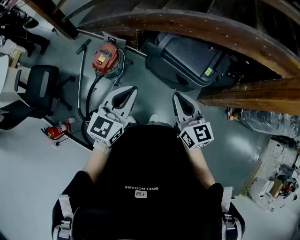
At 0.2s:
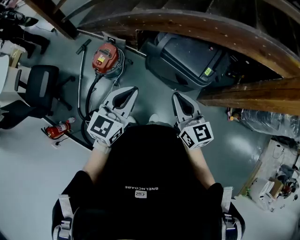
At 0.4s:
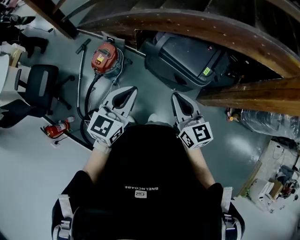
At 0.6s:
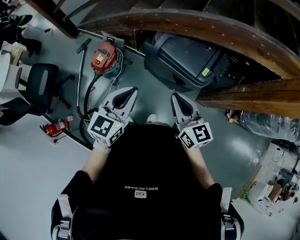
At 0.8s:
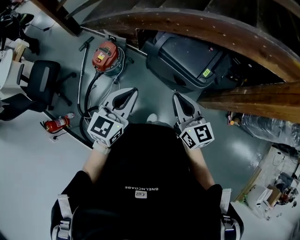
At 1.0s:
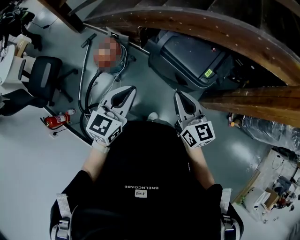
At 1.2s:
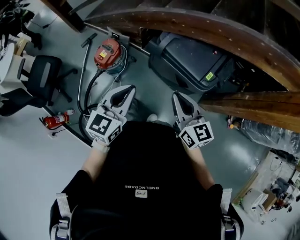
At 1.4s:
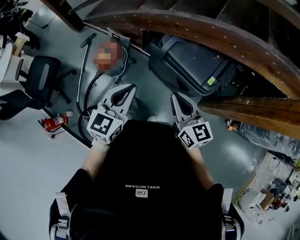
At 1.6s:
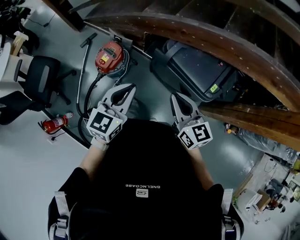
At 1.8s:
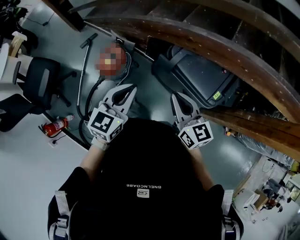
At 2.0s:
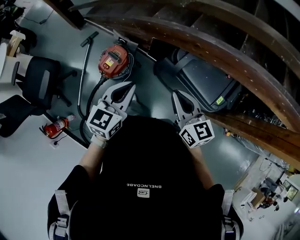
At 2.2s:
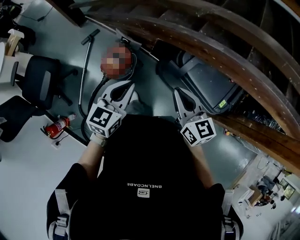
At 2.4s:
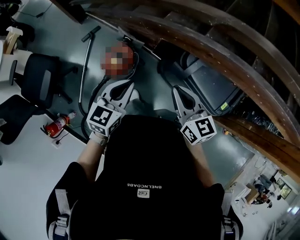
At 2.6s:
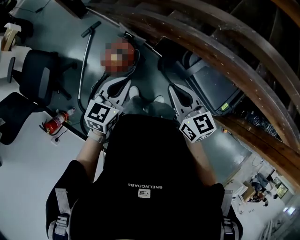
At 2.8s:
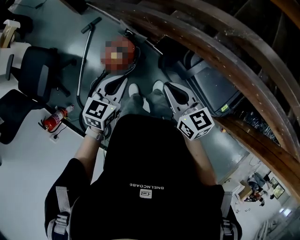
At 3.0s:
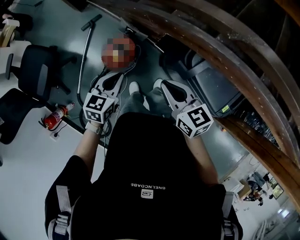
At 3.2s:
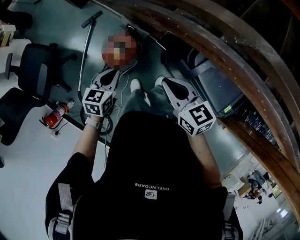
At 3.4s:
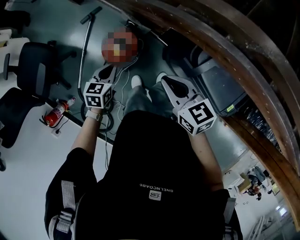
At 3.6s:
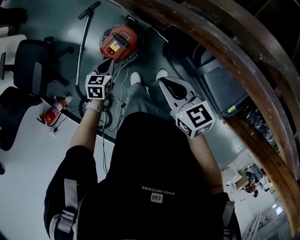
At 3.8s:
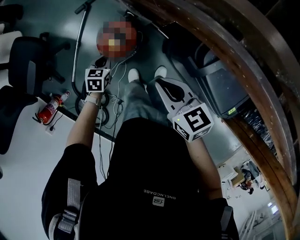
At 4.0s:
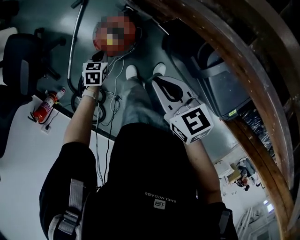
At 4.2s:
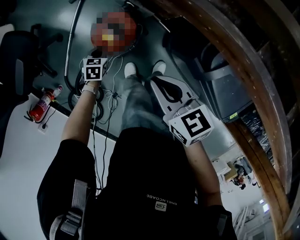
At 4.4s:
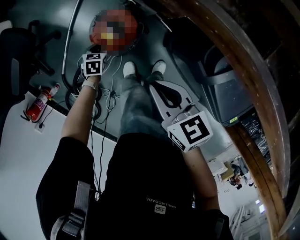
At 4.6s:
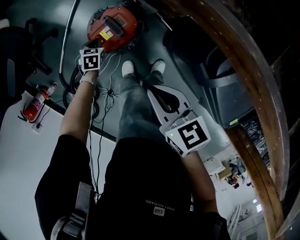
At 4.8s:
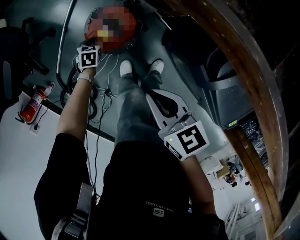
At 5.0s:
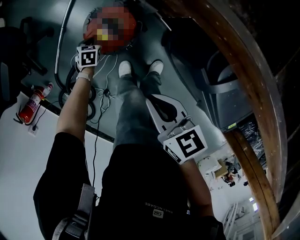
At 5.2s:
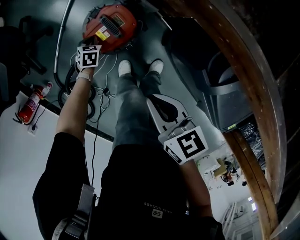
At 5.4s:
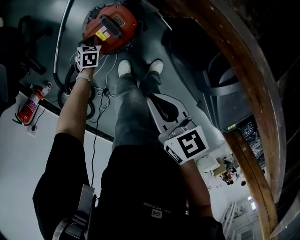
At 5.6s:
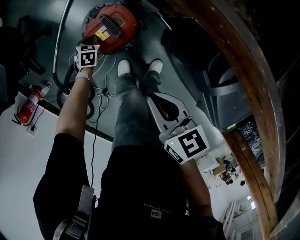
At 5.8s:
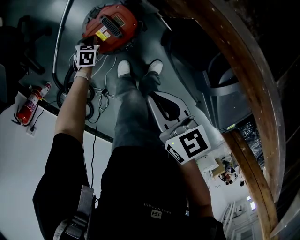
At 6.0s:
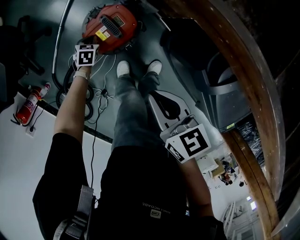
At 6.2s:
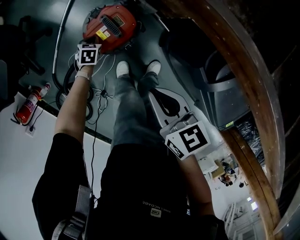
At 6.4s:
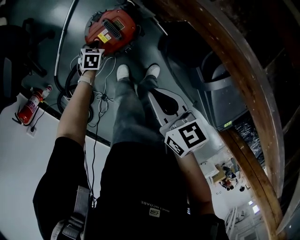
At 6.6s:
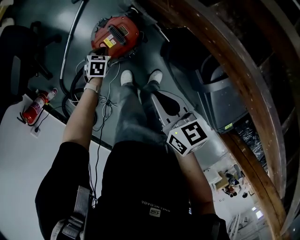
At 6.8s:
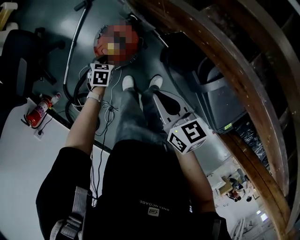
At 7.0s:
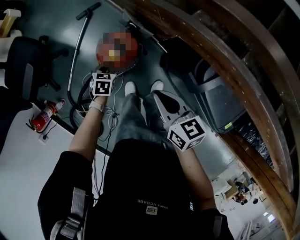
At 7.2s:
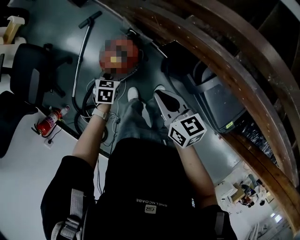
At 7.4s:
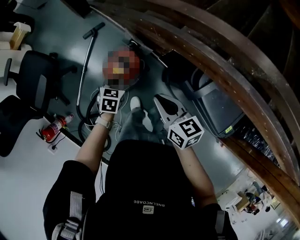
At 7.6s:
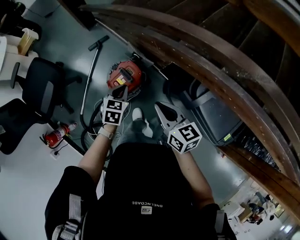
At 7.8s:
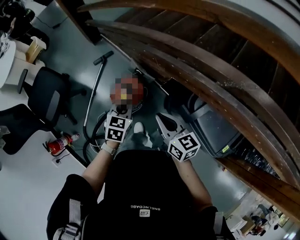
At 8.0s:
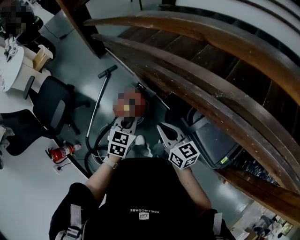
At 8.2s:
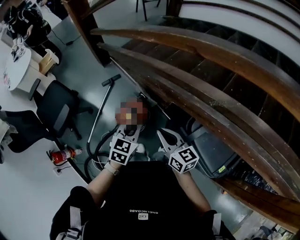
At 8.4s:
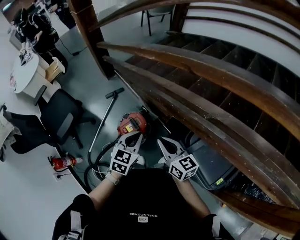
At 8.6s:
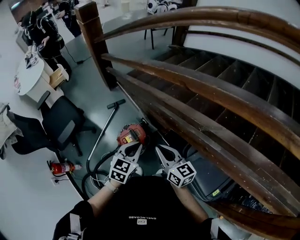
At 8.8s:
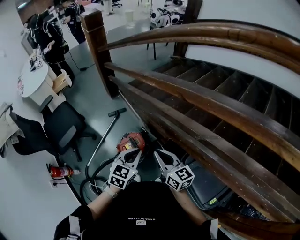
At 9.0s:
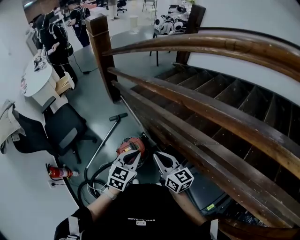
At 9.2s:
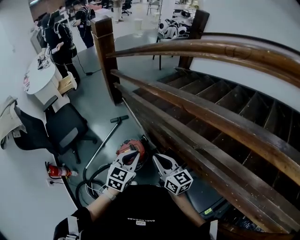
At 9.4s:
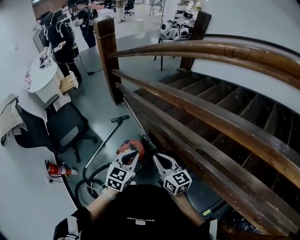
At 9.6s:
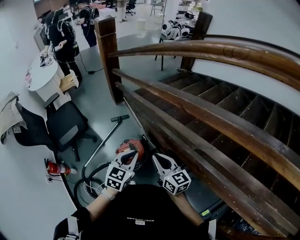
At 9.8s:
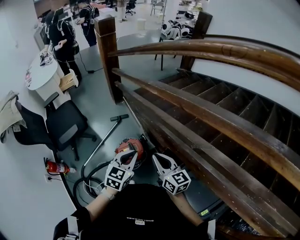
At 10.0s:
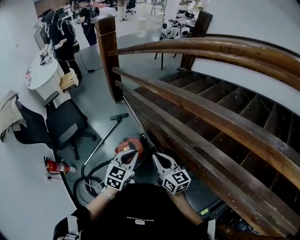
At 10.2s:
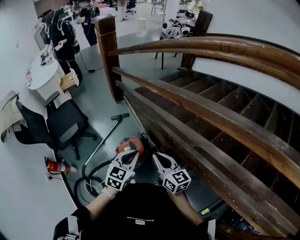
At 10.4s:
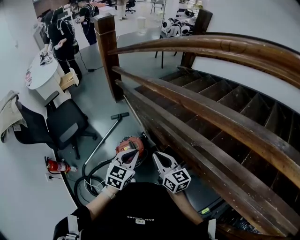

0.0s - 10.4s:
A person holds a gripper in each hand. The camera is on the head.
0.0s - 1.4s: The right gripper is displaced forward by approximately 5 cm. The left gripper shifts by roughly 5 cm.
1.4s - 3.0s: The left gripper moves forward, to the left and downward, about 40 cm, and changes its angle by about 20 degrees. The right gripper goes approximately 35 cm forward and to the left, and changes its angle by roughly 20 degrees.
3.0s - 4.4s: The right gripper goes roughly 20 cm downward; the left gripper goes approximately 40 cm downward, and angles its fingers downward, by some 30 degrees.
4.4s - 6.0s: The left gripper is displaced downward by roughly 10 cm. The right gripper travels downward by some 5 cm.
6.0s - 7.4s: The right gripper moves upward, some 15 cm. The left gripper heads upward, covering some 35 cm.
7.4s - 9.0s: The left gripper travels upward by some 35 cm, and turns by about 30 degrees. The right gripper is displaced upward by approximately 20 cm, and turns by some 30 degrees.
9.0s - 10.4s: The grippers stay close to where they were, moving slightly.

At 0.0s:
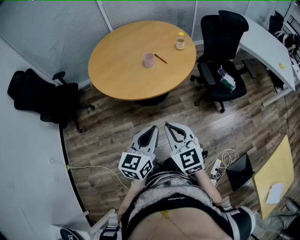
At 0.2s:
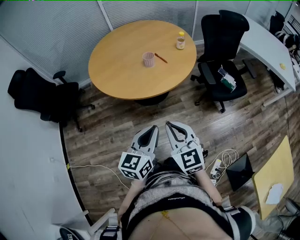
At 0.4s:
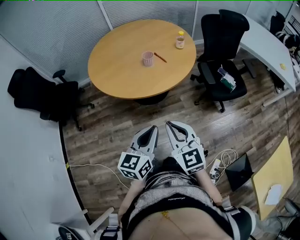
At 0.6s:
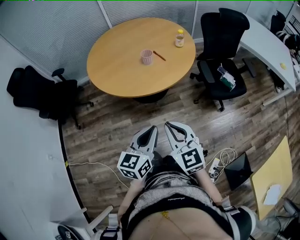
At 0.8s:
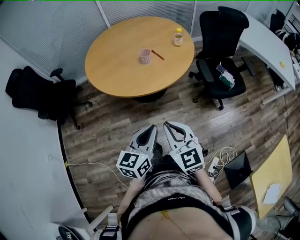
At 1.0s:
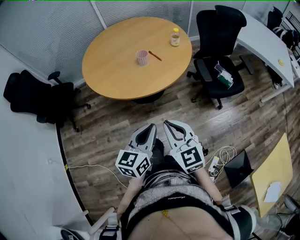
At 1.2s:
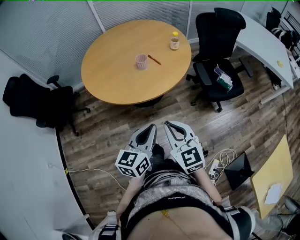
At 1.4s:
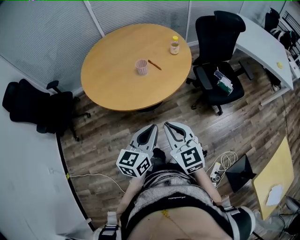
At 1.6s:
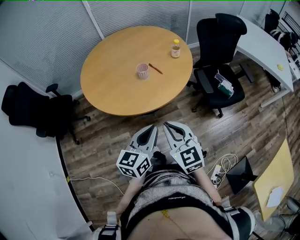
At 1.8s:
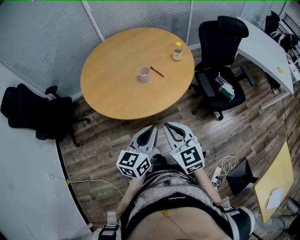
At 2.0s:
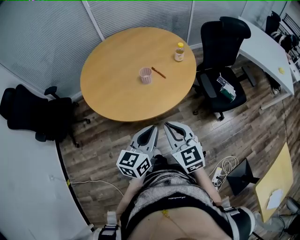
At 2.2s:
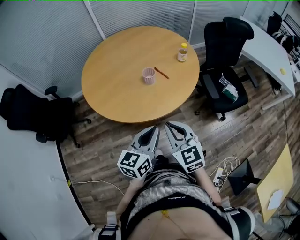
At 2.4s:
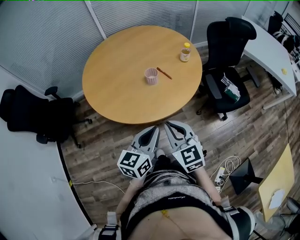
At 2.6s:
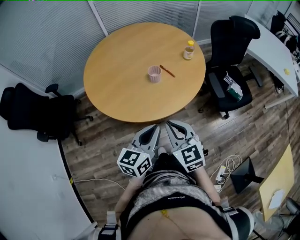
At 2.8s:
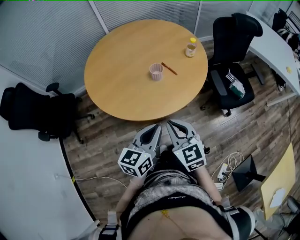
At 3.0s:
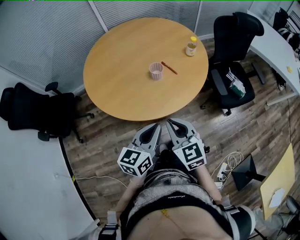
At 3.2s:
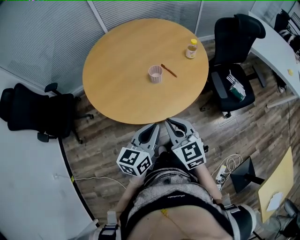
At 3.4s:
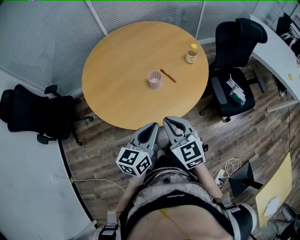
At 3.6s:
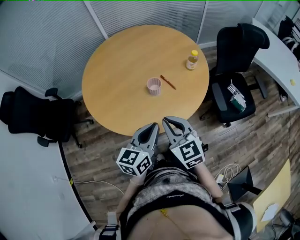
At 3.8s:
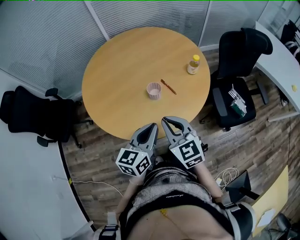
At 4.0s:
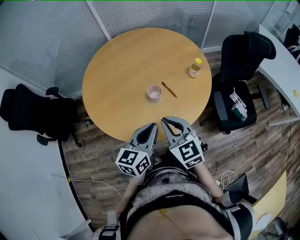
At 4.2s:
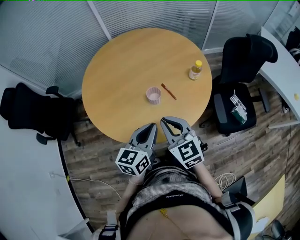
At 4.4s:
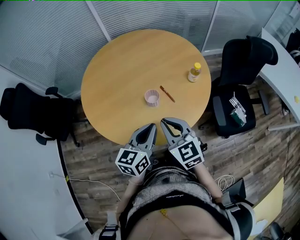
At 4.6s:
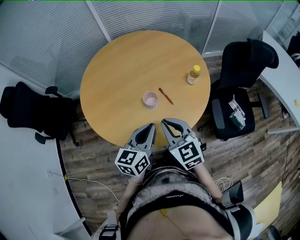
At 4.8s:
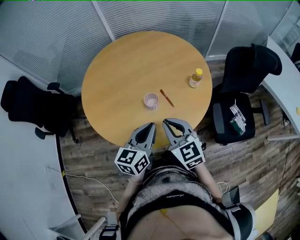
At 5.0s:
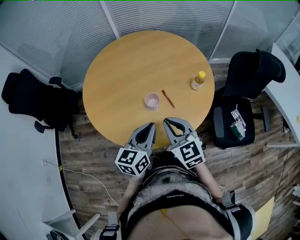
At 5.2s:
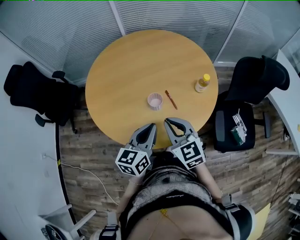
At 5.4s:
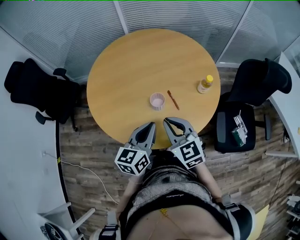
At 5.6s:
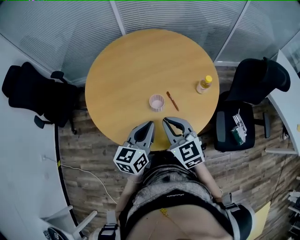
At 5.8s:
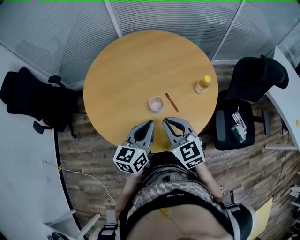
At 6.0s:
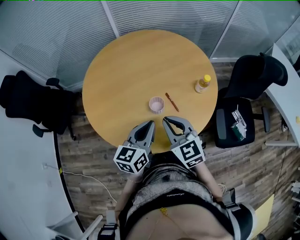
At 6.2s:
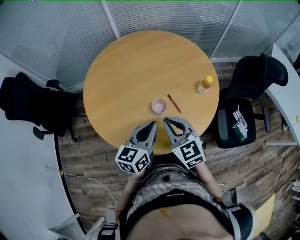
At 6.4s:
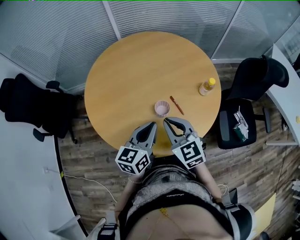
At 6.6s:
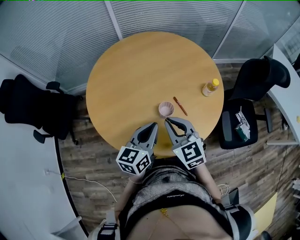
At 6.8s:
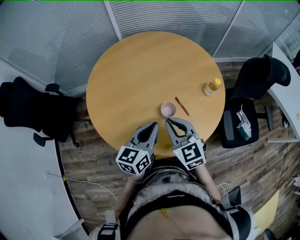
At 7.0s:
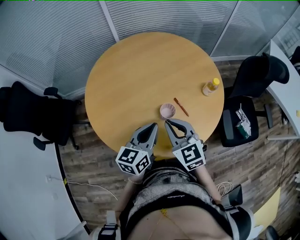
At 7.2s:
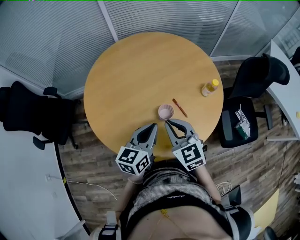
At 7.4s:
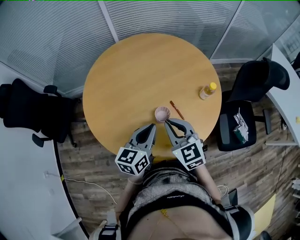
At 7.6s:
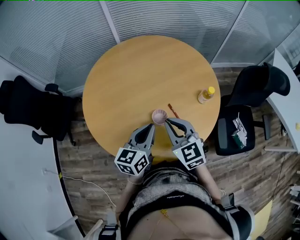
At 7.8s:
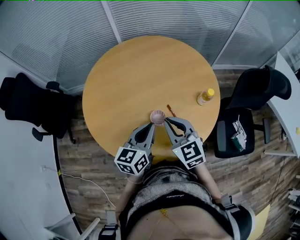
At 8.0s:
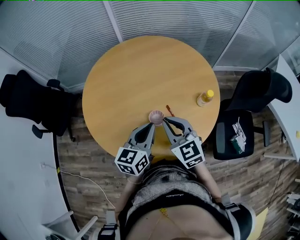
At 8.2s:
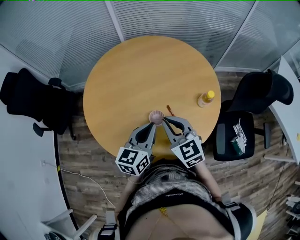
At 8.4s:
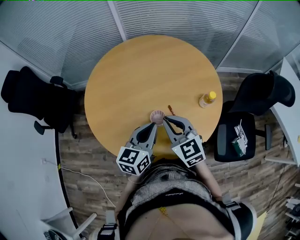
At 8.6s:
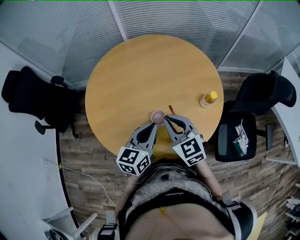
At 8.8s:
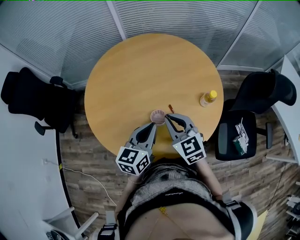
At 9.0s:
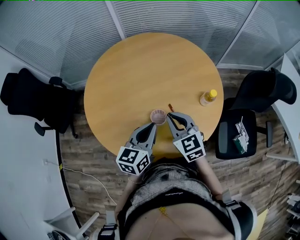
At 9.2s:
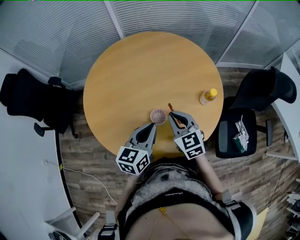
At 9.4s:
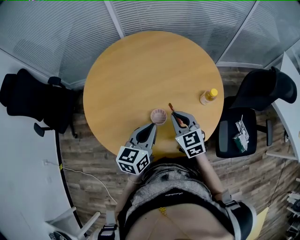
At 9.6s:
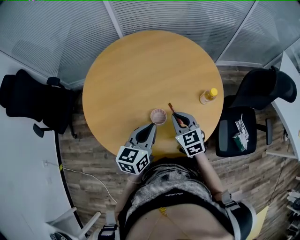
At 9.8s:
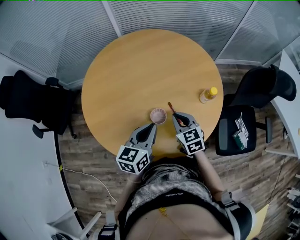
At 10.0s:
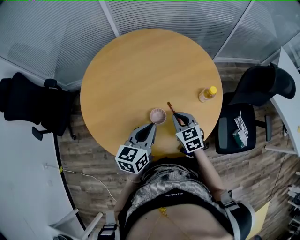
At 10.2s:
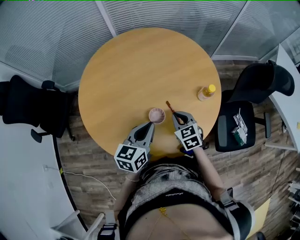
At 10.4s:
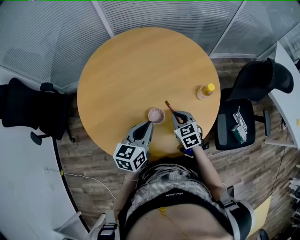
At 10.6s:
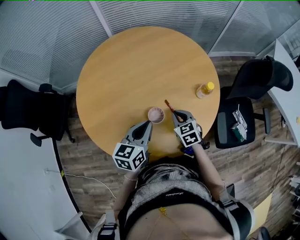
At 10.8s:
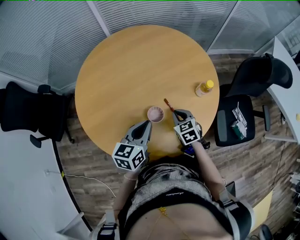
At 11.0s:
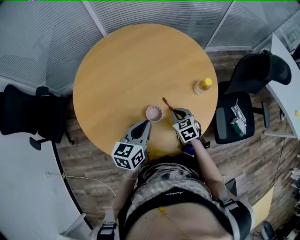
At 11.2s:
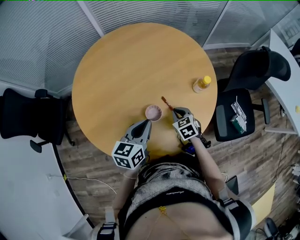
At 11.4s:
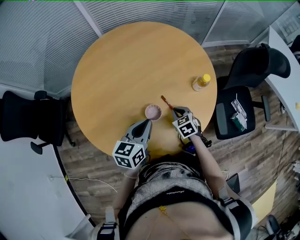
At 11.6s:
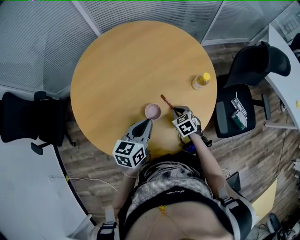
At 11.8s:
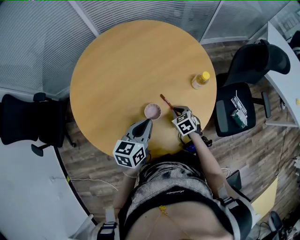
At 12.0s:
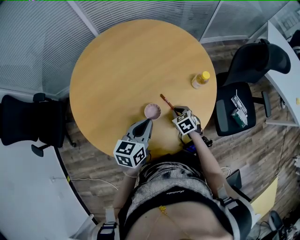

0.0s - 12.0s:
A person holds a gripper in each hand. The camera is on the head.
0.0s - 1.6s: The grippers both shift forward by approximately 10 cm.
1.6s - 3.0s: Both grippers move forward and to the left, roughly 10 cm.
3.0s - 4.4s: Both grippers move forward, some 15 cm.
4.4s - 6.0s: The grippers both shift forward by about 5 cm.
6.0s - 7.6s: Both grippers travel together forward, approximately 5 cm.
7.6s - 9.0s: The right gripper shifts by some 5 cm.
9.0s - 10.4s: The right gripper travels downward by some 15 cm, and rotates about 20 degrees.
10.4s - 12.0s: The right gripper moves downward and to the right, some 15 cm; the left gripper travels to the right by approximately 5 cm.

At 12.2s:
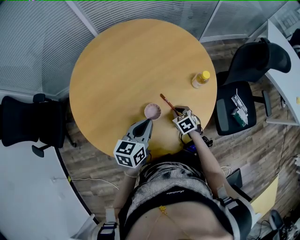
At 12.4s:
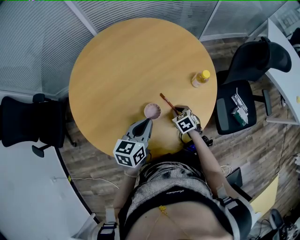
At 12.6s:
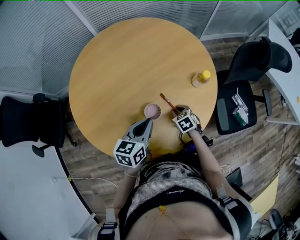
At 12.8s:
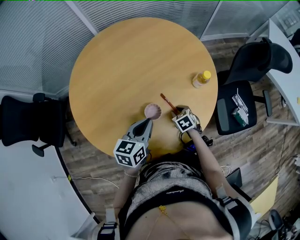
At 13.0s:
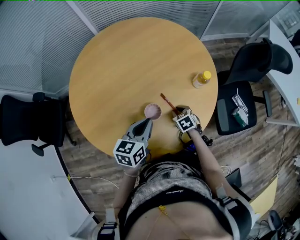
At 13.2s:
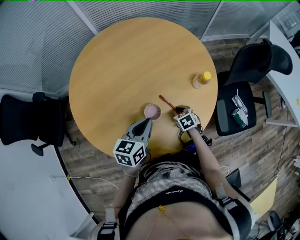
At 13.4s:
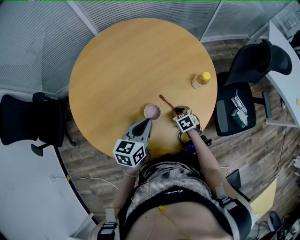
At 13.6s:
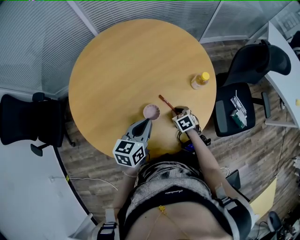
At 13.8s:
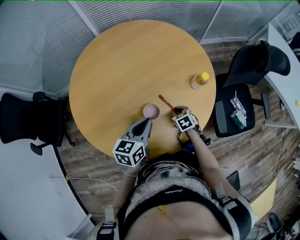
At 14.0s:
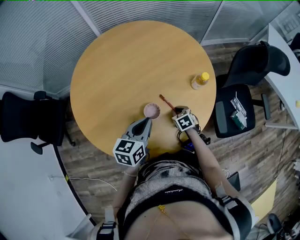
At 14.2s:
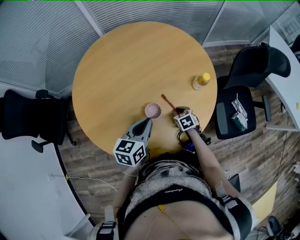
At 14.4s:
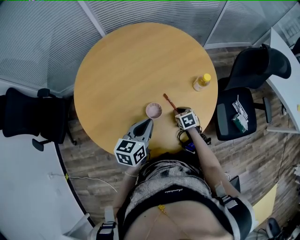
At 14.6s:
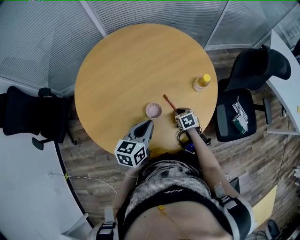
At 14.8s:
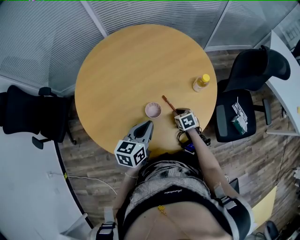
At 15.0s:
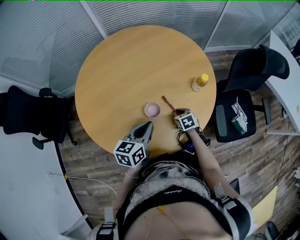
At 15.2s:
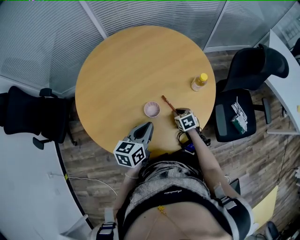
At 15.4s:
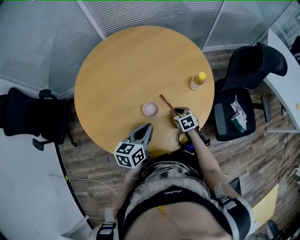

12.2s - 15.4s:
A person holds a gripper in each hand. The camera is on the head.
12.2s - 13.8s: The grippers make only small movements.
13.8s - 15.4s: The left gripper changes place by about 5 cm.
